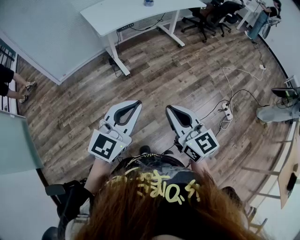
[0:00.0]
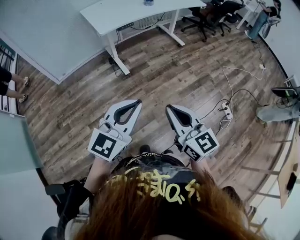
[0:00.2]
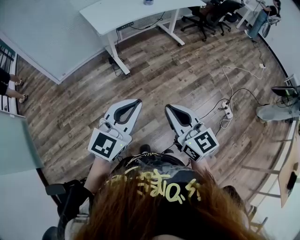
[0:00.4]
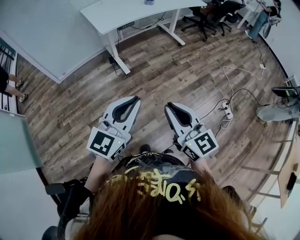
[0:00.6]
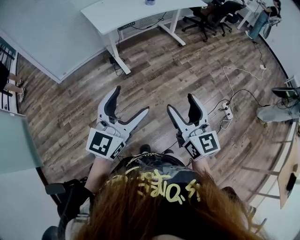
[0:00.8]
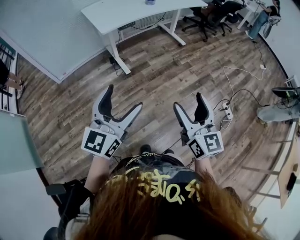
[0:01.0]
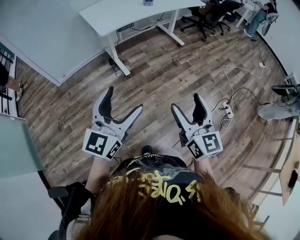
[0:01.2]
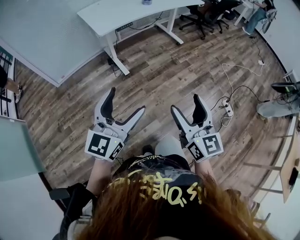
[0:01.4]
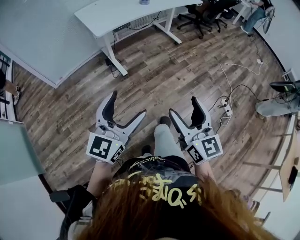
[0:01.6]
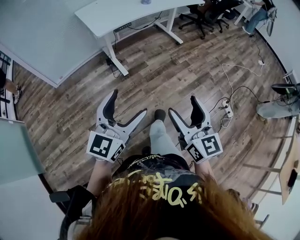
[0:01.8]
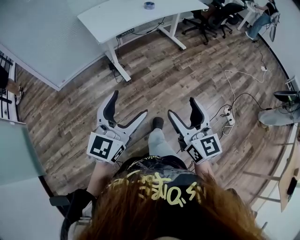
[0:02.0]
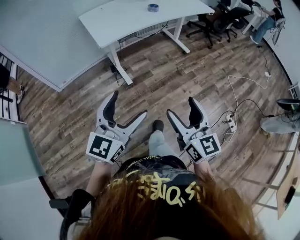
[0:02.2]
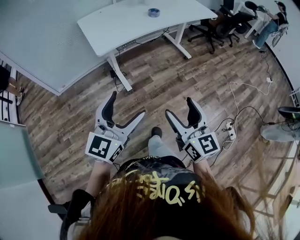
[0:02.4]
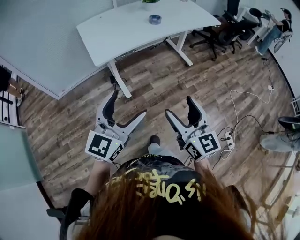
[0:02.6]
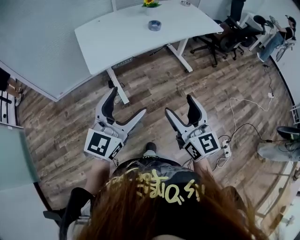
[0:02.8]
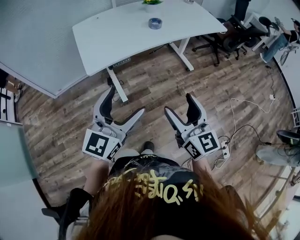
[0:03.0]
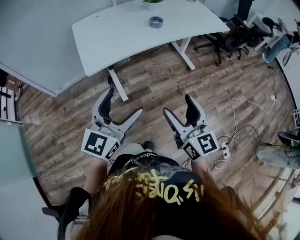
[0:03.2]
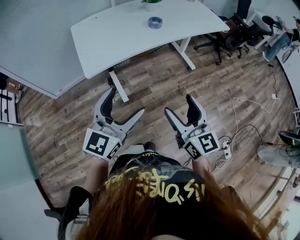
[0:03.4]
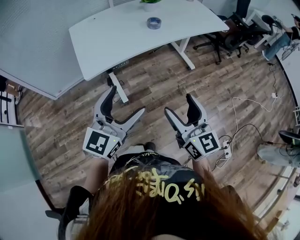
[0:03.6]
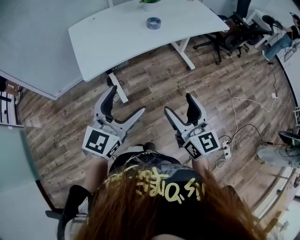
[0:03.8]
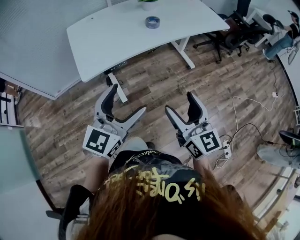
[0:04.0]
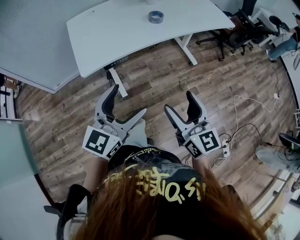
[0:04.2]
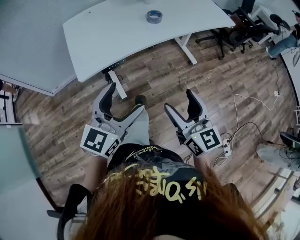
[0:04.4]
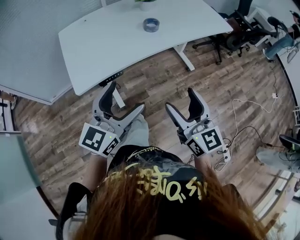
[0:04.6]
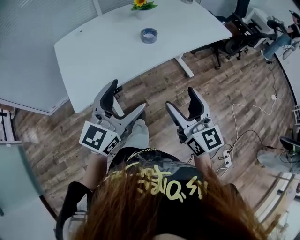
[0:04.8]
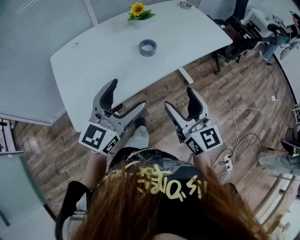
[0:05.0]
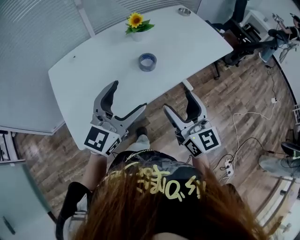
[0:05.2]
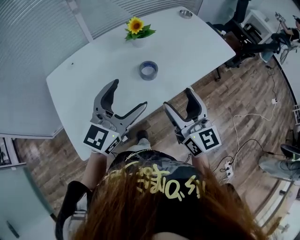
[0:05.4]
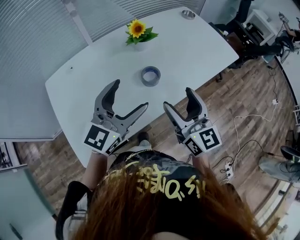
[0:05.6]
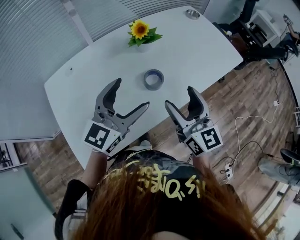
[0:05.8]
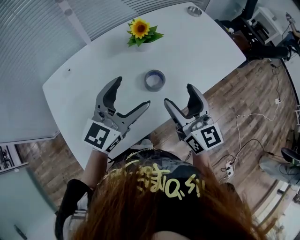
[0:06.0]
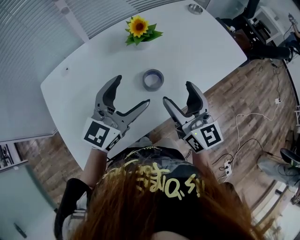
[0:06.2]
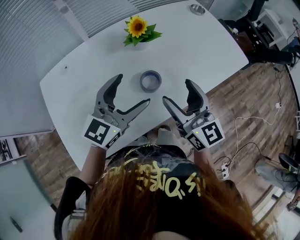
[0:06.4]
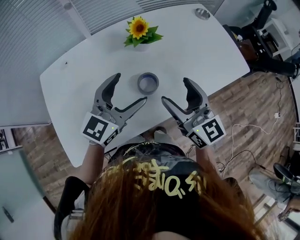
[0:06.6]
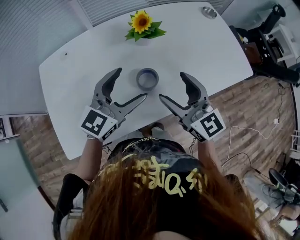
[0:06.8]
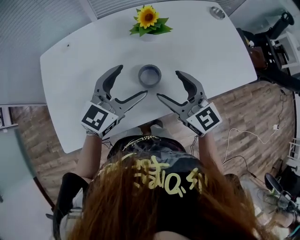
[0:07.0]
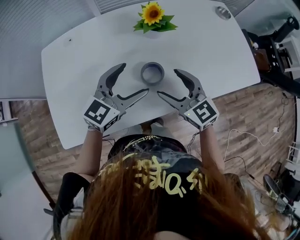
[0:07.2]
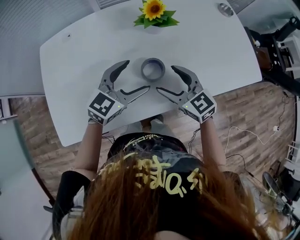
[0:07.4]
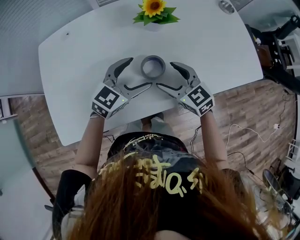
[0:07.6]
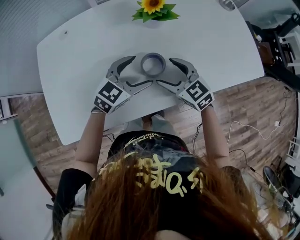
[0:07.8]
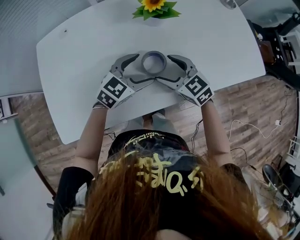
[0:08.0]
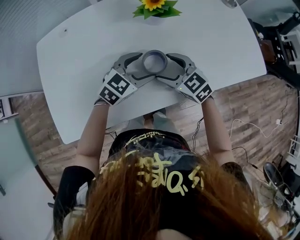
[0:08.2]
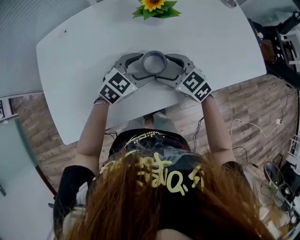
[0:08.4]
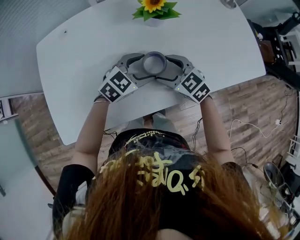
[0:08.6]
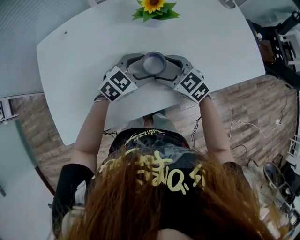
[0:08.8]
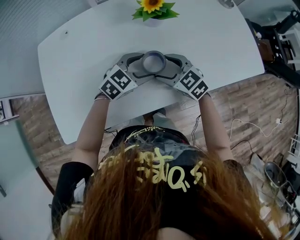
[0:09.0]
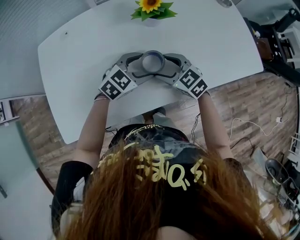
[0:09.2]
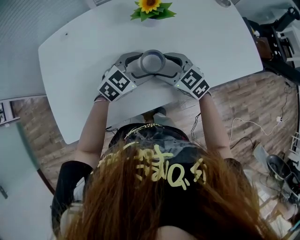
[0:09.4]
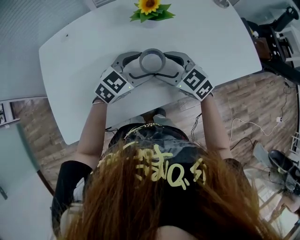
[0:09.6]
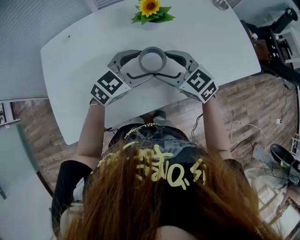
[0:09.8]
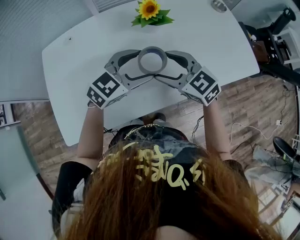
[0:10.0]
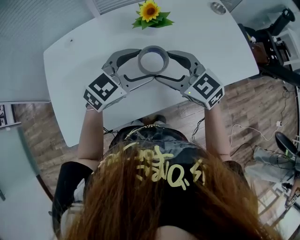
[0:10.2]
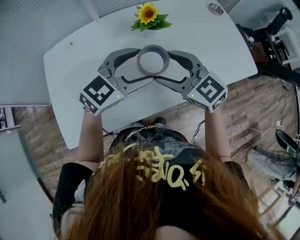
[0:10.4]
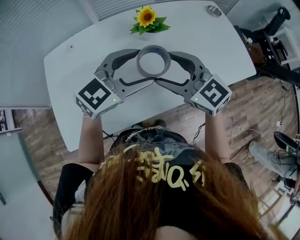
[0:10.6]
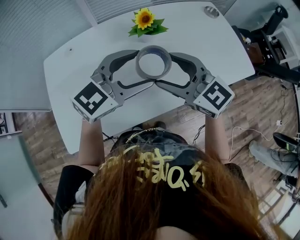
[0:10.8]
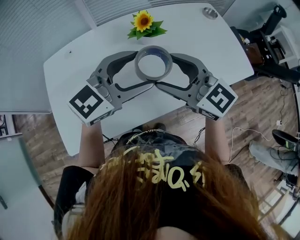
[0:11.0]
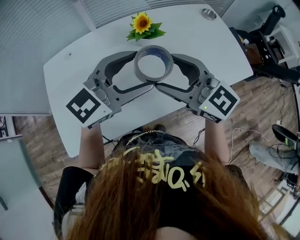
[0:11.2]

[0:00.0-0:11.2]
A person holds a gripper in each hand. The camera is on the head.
0:00.0 to 0:01.6: The left gripper ends up approximately 5 cm from where it was, and opens up. Meanwhile the right gripper opens its fingers.
0:01.6 to 0:03.2: Both grippers move forward, some 40 cm.
0:03.2 to 0:04.8: The grippers both shift forward by roughly 20 cm.
0:04.8 to 0:06.4: The grippers both shift forward by approximately 35 cm.
0:06.4 to 0:08.0: Both grippers travel together downward, approximately 20 cm. The left gripper swivels approximately 30 degrees; the right gripper tips its fingers downward by about 30 degrees.
0:08.0 to 0:09.6: The grippers move only a little.
0:09.6 to 0:11.2: The two grippers go roughly 20 cm upward. The right gripper turns by some 30 degrees. Meanwhile the left gripper swivels roughly 20 degrees.

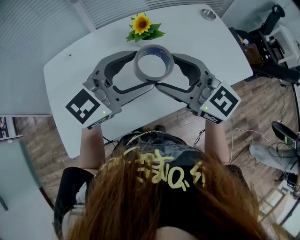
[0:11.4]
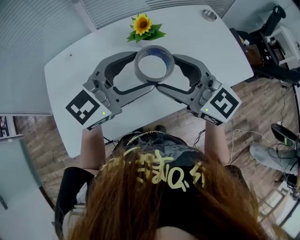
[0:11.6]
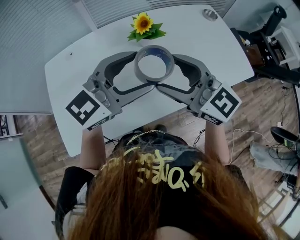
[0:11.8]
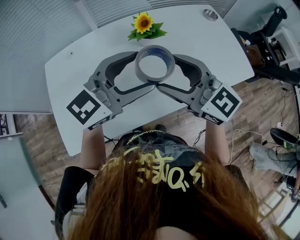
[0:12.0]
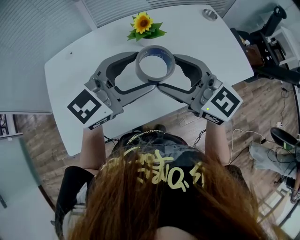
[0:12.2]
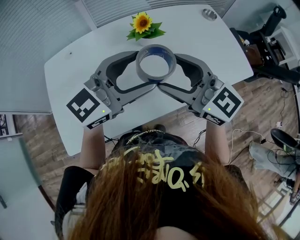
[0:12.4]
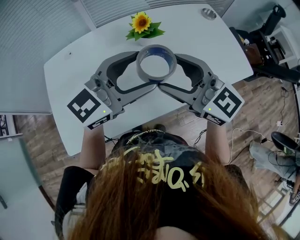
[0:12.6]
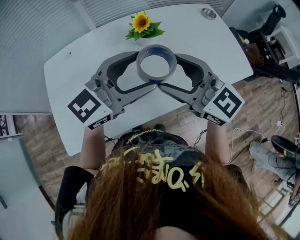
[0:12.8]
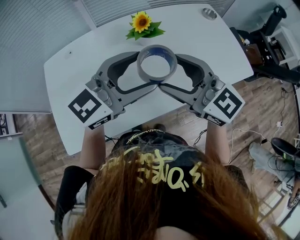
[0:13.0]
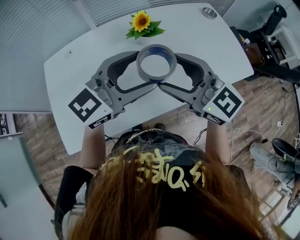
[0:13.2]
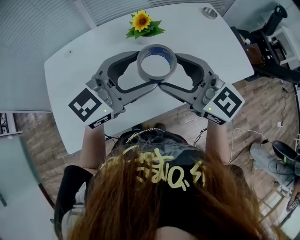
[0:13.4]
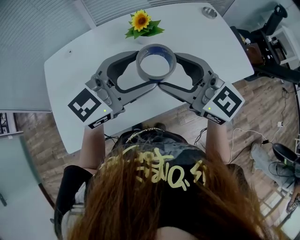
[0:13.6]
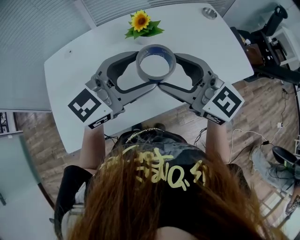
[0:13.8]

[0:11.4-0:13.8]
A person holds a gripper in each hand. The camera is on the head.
0:11.4 to 0:12.6: The grippers stay close to where they were, moving slightly.
0:12.6 to 0:13.8: Both grippers stay about where they are.

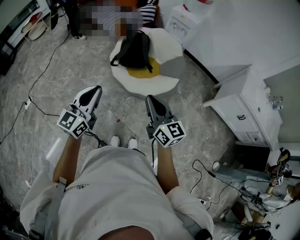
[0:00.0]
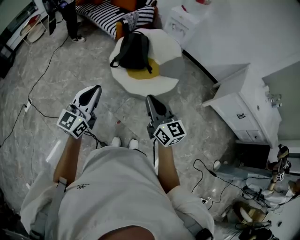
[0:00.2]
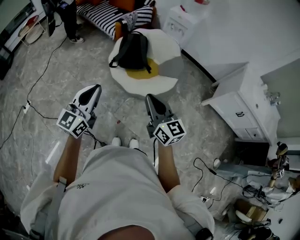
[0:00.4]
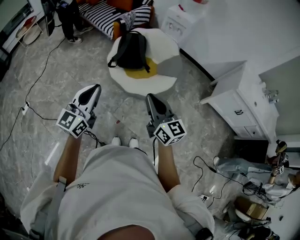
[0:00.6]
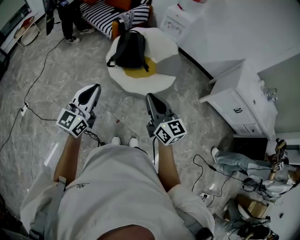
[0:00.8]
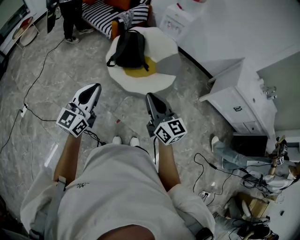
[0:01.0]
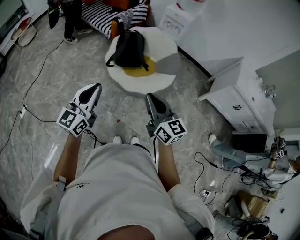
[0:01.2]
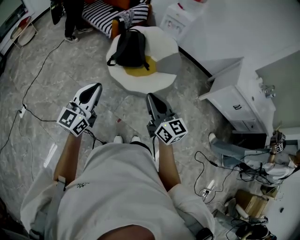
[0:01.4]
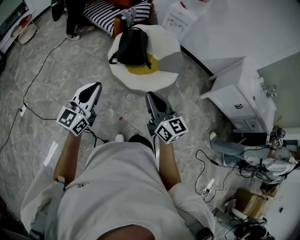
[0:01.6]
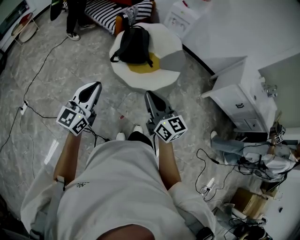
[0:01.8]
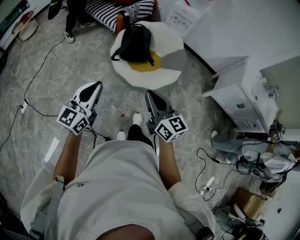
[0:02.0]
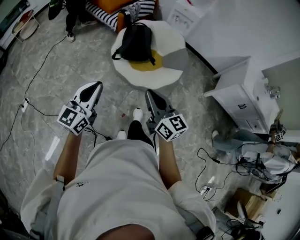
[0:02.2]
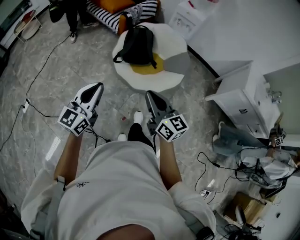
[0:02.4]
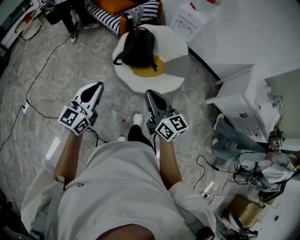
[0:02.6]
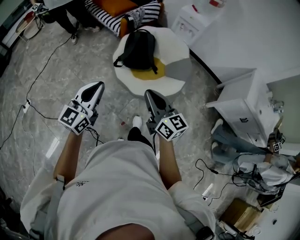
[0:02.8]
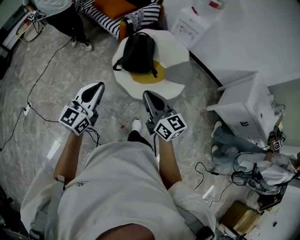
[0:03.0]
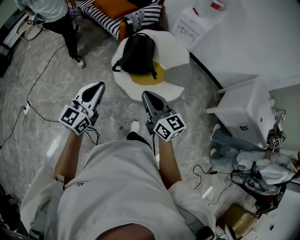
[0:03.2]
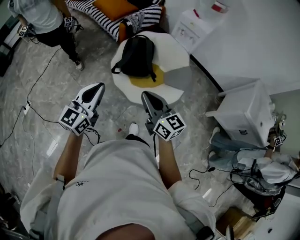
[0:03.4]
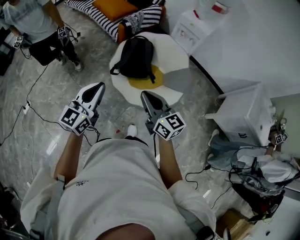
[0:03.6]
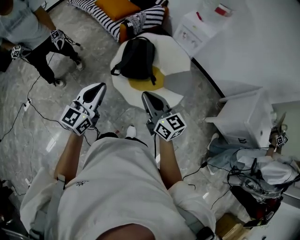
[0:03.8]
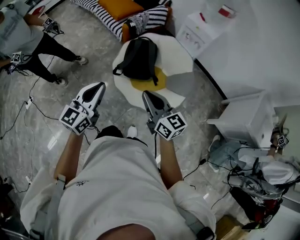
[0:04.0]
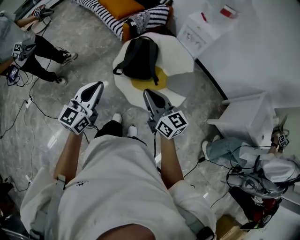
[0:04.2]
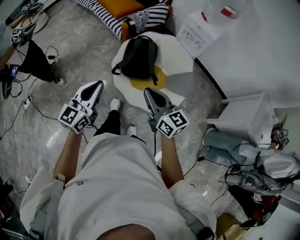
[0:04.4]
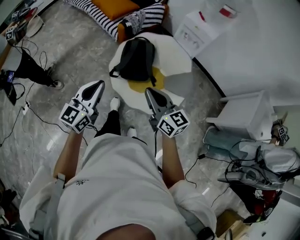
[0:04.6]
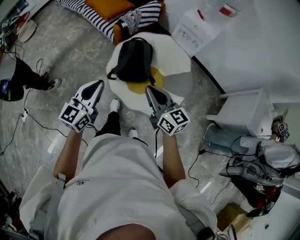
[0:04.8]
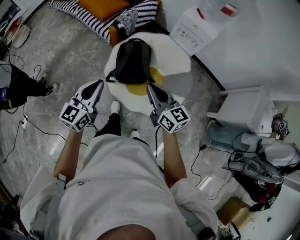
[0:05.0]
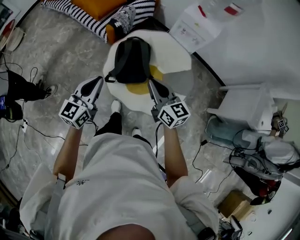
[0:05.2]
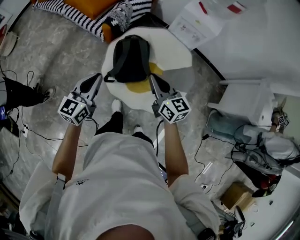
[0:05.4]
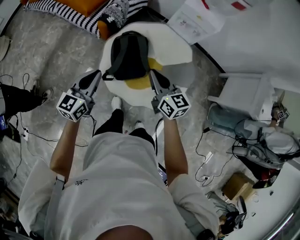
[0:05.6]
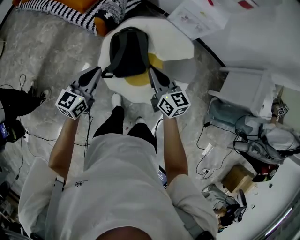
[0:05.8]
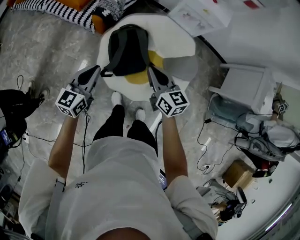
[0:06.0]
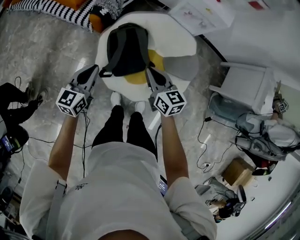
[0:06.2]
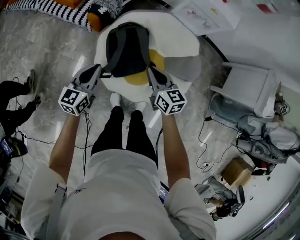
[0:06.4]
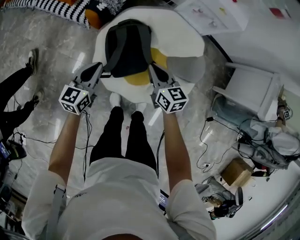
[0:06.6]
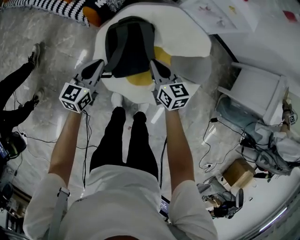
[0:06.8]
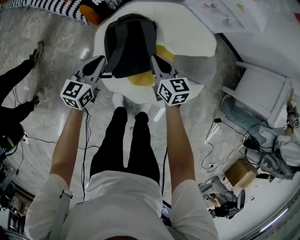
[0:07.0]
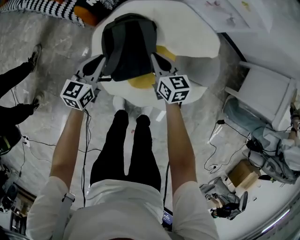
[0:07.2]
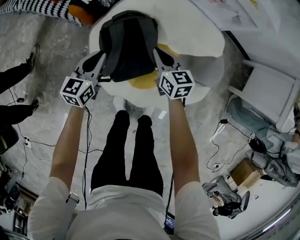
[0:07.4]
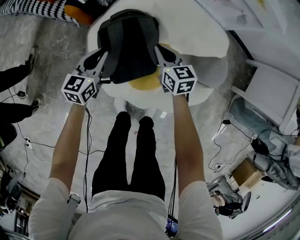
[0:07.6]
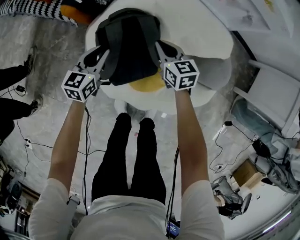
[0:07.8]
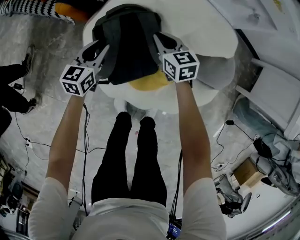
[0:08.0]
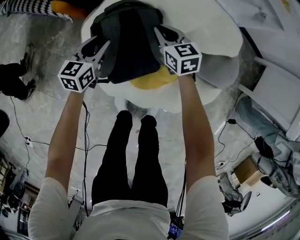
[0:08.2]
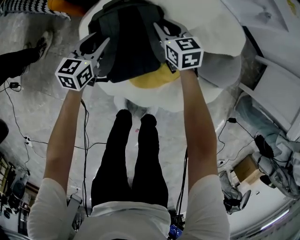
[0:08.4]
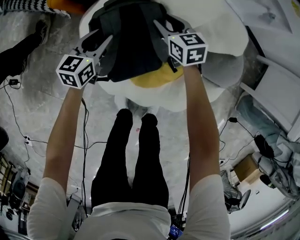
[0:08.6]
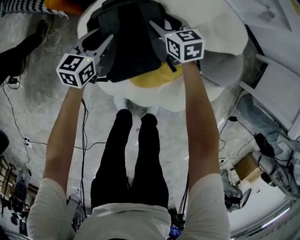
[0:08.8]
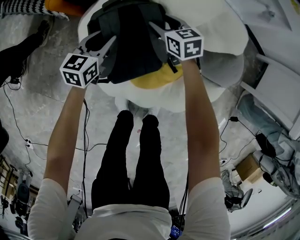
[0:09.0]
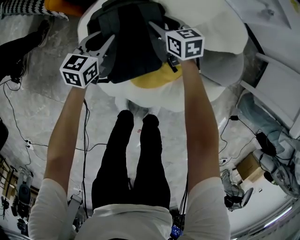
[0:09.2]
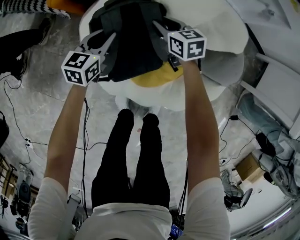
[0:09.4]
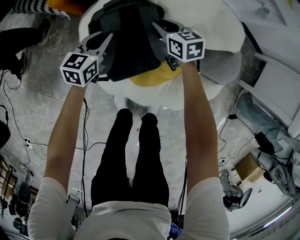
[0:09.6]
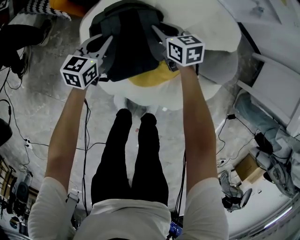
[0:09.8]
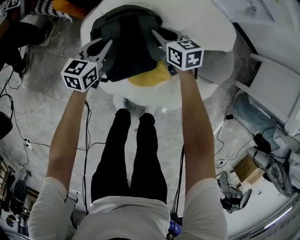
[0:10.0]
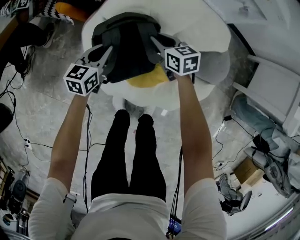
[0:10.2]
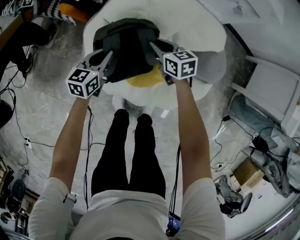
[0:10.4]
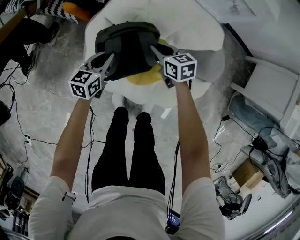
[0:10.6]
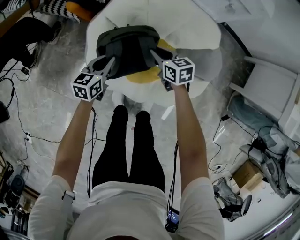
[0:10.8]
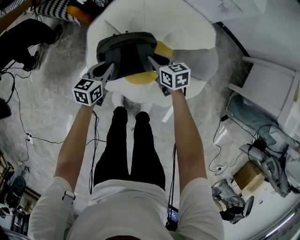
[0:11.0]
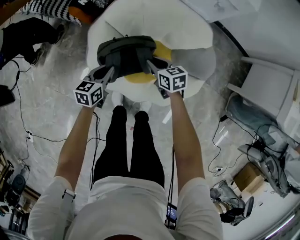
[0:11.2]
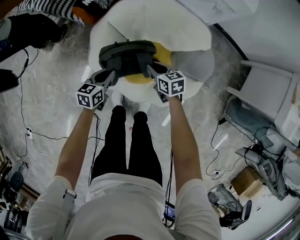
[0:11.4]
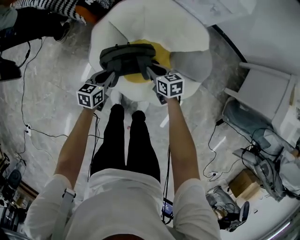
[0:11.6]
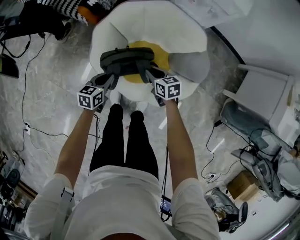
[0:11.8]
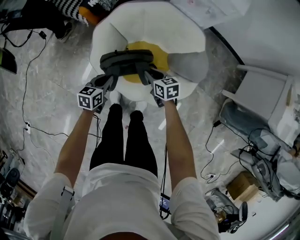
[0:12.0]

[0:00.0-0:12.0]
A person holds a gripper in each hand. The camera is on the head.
0:00.0 to 0:01.6: The two grippers go some 10 cm to the left.
0:01.6 to 0:03.0: The grippers both shift forward by approximately 10 cm.
0:03.0 to 0:04.4: The left gripper shifts roughly 10 cm forward, while the right gripper goes some 15 cm forward and to the right.
0:04.4 to 0:06.0: Both grippers travel together forward and downward, roughly 40 cm. The left gripper changes its angle by approximately 30 degrees; the right gripper turns by approximately 30 degrees.
0:06.0 to 0:07.6: Both grippers travel together downward and forward, some 35 cm.
0:07.6 to 0:09.0: The left gripper travels downward by approximately 10 cm, and opens its fingers; the right gripper goes approximately 15 cm downward and forward, and opens.
0:09.0 to 0:10.4: The left gripper goes some 10 cm upward and backward, and closes its fingers; the right gripper travels backward and upward by about 10 cm, and closes.
0:10.4 to 0:12.0: The two grippers go about 20 cm backward and upward.
